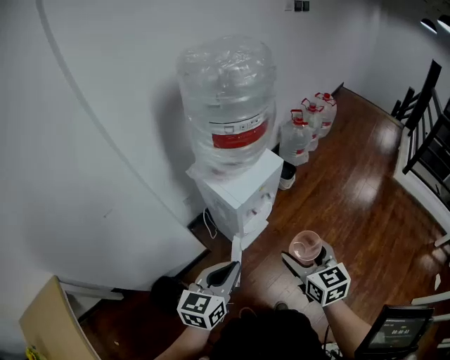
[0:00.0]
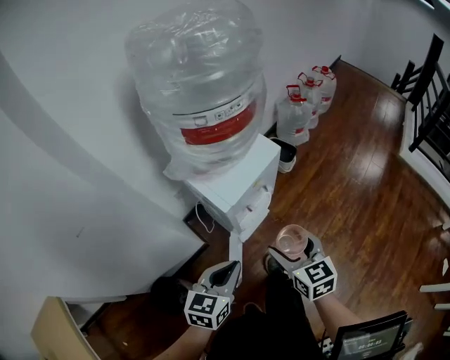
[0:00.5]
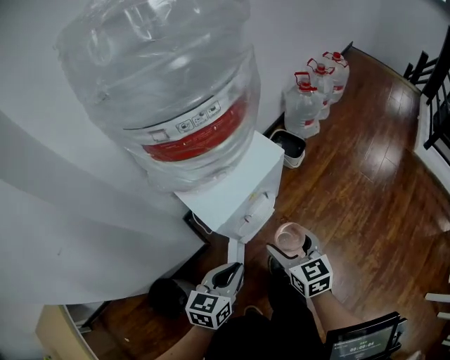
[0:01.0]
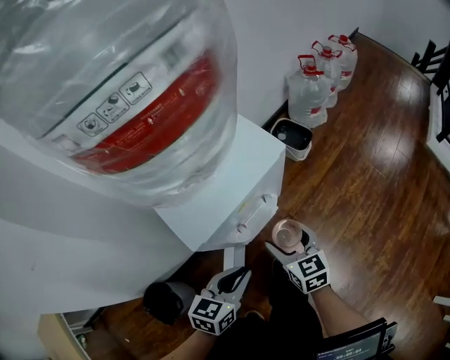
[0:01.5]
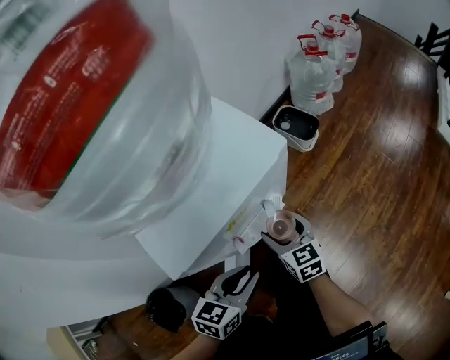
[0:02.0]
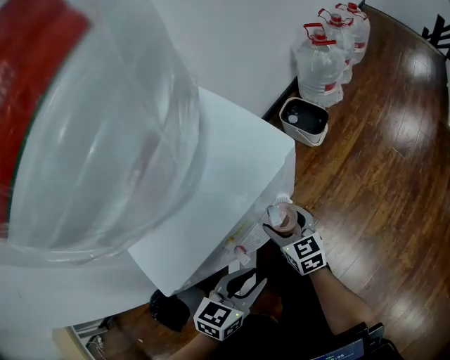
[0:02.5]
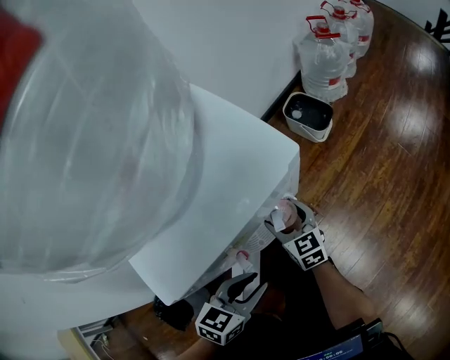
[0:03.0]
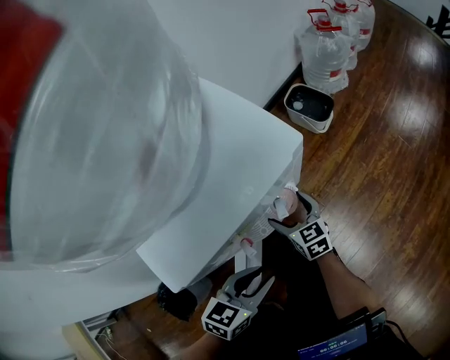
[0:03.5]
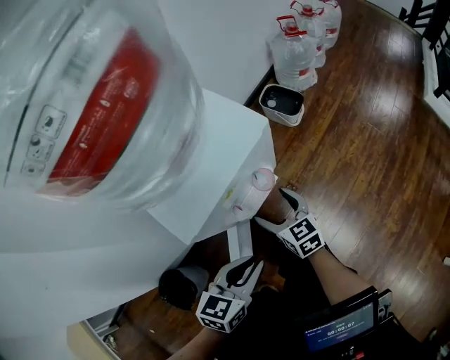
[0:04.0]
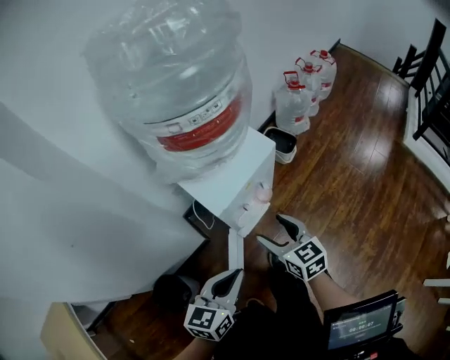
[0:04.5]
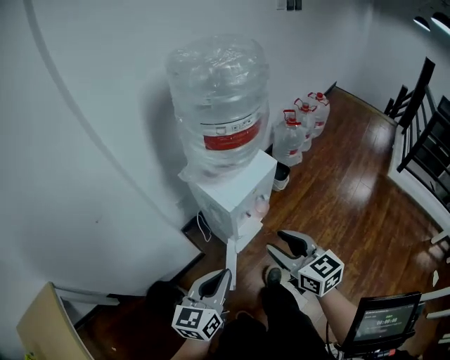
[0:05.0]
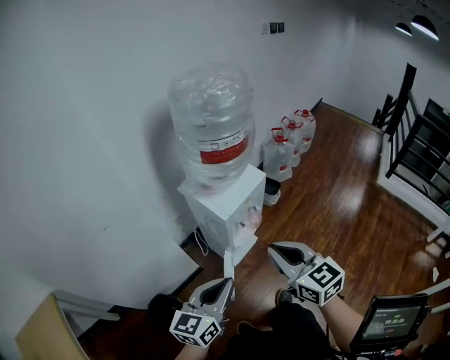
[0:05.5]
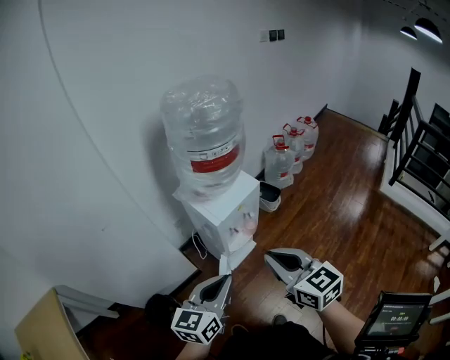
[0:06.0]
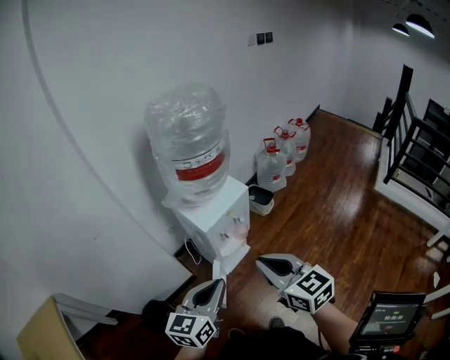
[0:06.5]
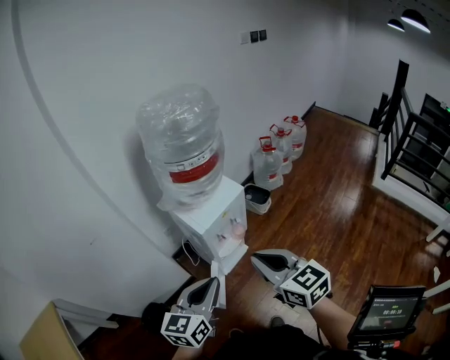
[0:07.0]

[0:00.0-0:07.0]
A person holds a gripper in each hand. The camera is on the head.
0:00.0 to 0:02.0: Both grippers travel together downward and forward, approximately 50 cm.
0:02.0 to 0:03.5: The right gripper travels downward by some 10 cm.
0:03.5 to 0:05.0: Both grippers move upward and backward, roughly 50 cm. The left gripper turns by about 30 degrees. Meanwhile the right gripper closes its fingers.
0:05.0 to 0:07.0: The right gripper goes some 10 cm upward and backward, and closes its fingers. Meanwhile the left gripper moves upward and to the right, roughly 10 cm.

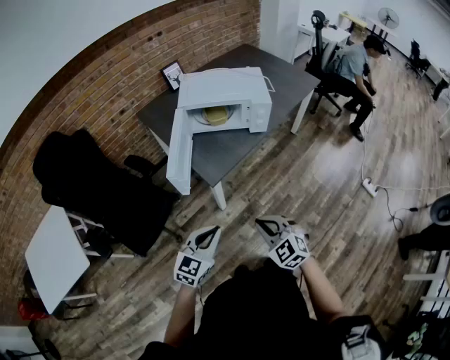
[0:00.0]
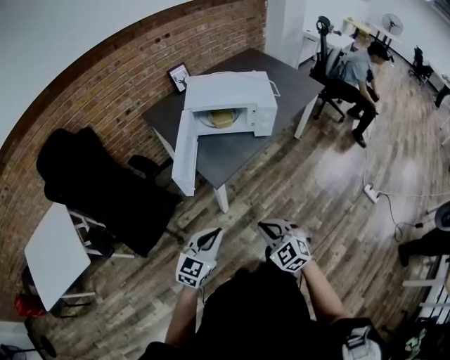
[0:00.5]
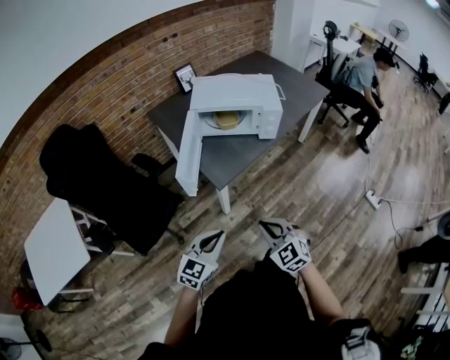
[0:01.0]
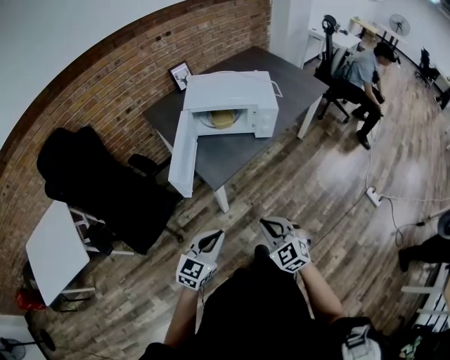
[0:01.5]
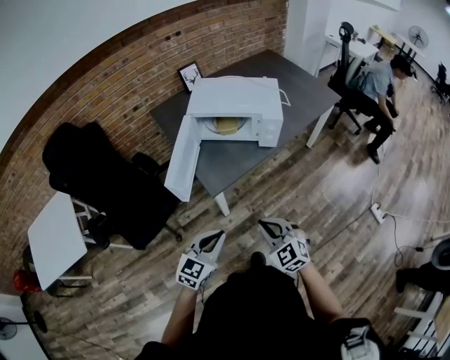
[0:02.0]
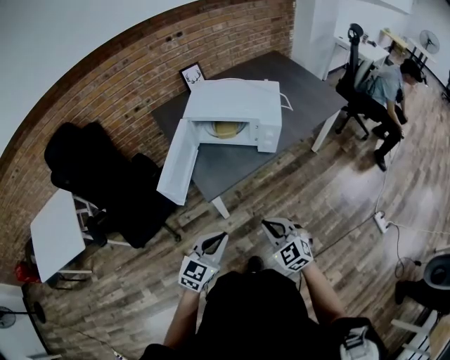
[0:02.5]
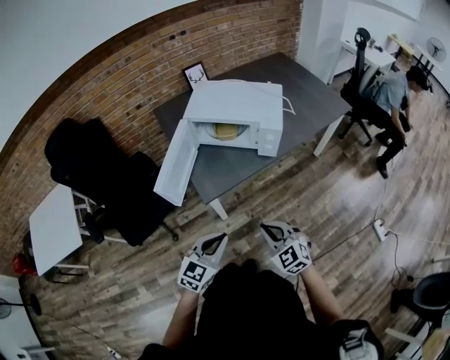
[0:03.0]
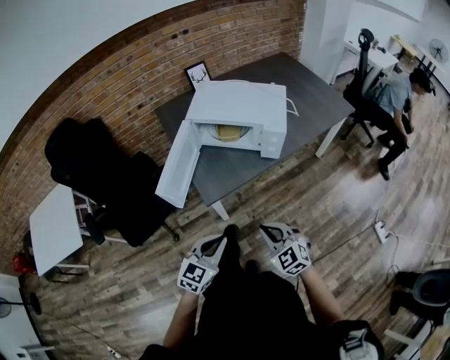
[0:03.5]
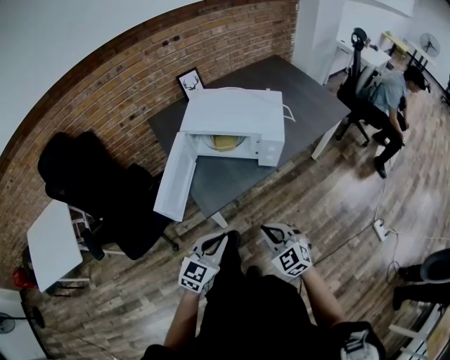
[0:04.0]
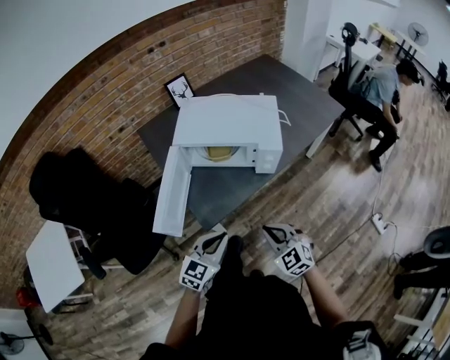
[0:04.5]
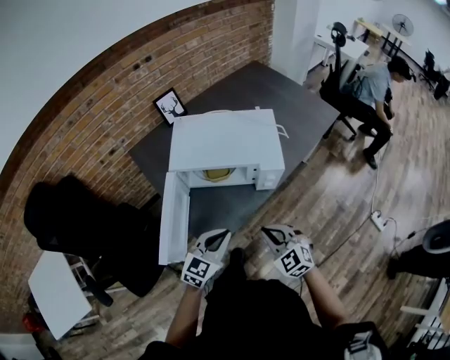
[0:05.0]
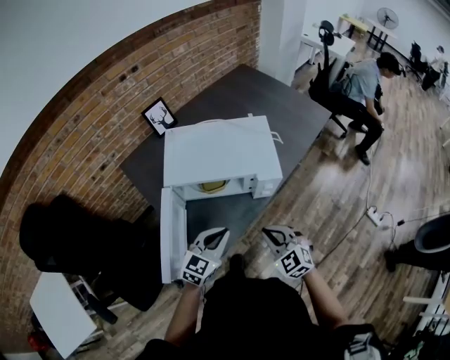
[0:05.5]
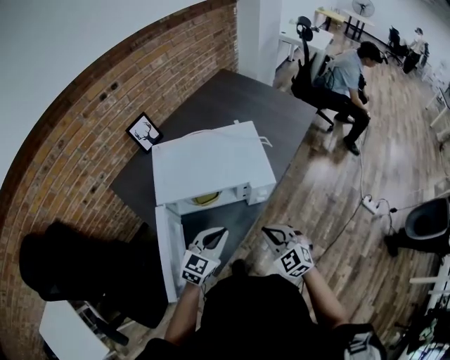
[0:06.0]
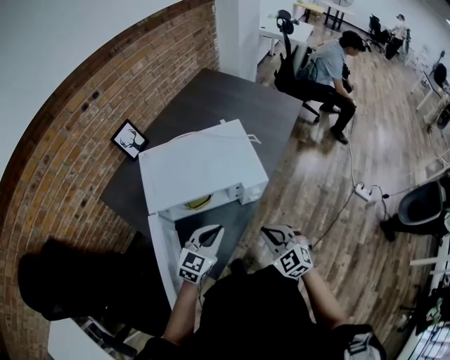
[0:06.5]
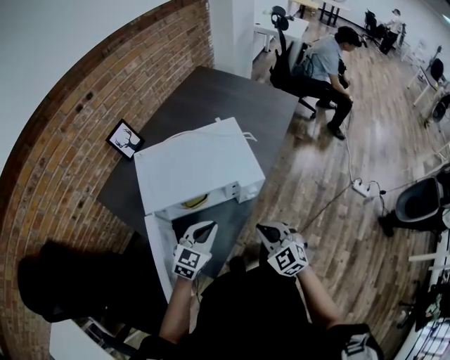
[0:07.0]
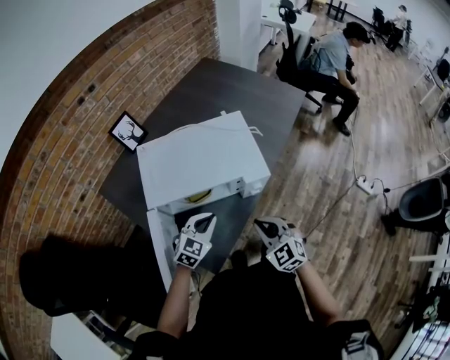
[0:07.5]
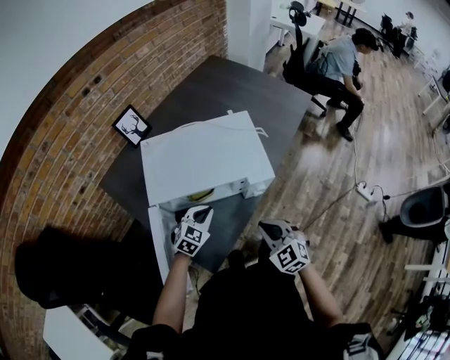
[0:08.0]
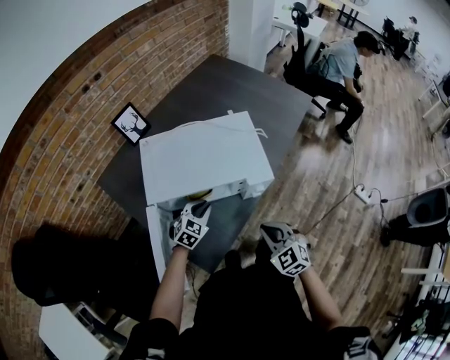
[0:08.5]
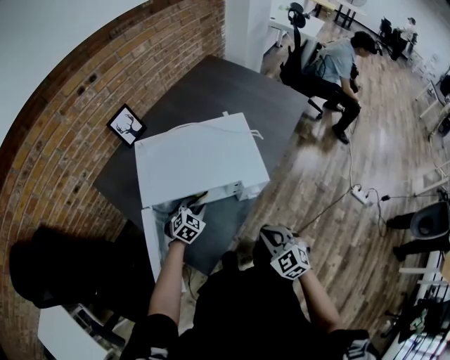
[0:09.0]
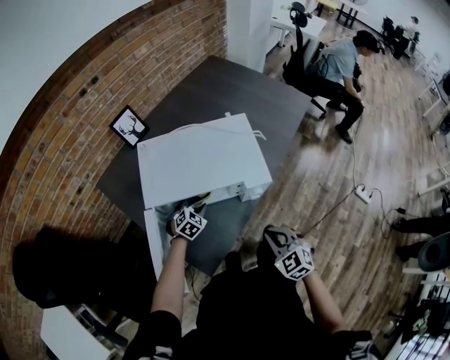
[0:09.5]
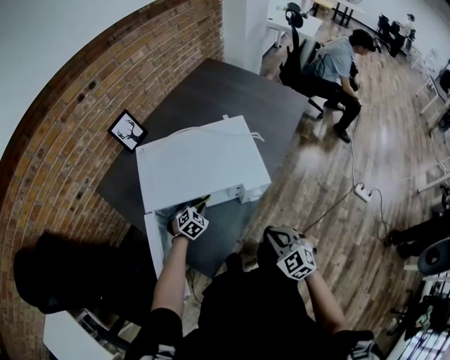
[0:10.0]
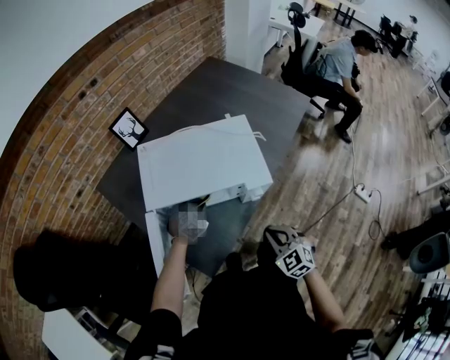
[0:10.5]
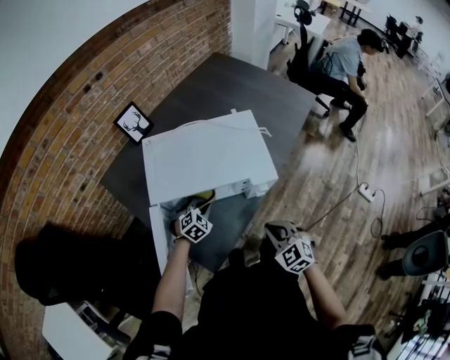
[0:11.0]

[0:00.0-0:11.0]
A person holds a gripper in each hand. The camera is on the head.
0:00.0 to 0:02.0: The left gripper travels to the right by about 5 cm. Meanwhile the right gripper is displaced forward and to the right by about 10 cm.
0:02.0 to 0:03.5: The right gripper travels forward and to the right by roughly 10 cm. Meanwhile the left gripper is displaced to the right by some 5 cm.
0:03.5 to 0:05.5: Both grippers travel together forward, approximately 25 cm.
0:05.5 to 0:07.5: The left gripper moves forward and downward, about 10 cm.
0:07.5 to 0:09.0: The left gripper goes approximately 15 cm downward and forward, and opens.
0:09.0 to 0:11.0: The grippers move only a little.

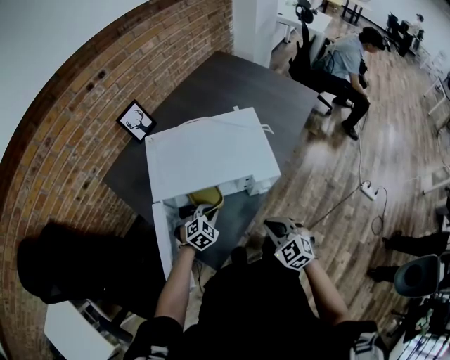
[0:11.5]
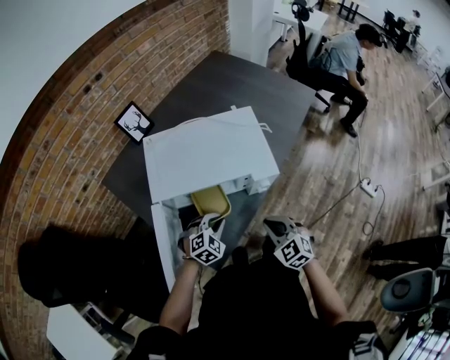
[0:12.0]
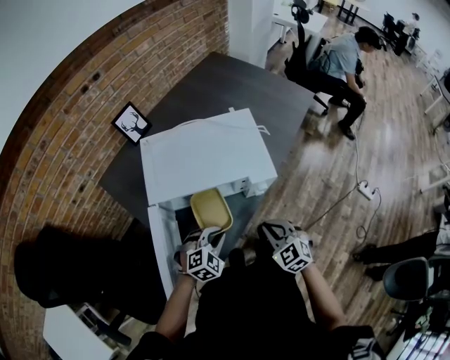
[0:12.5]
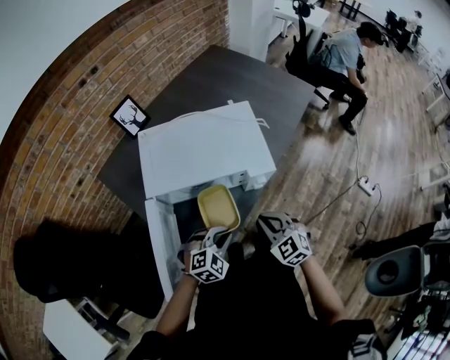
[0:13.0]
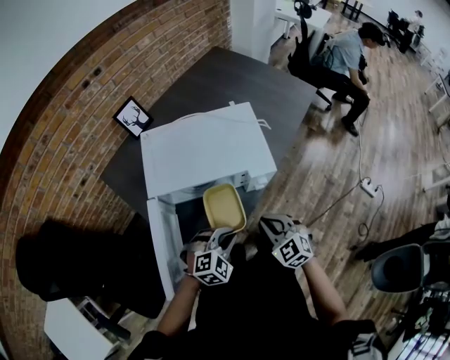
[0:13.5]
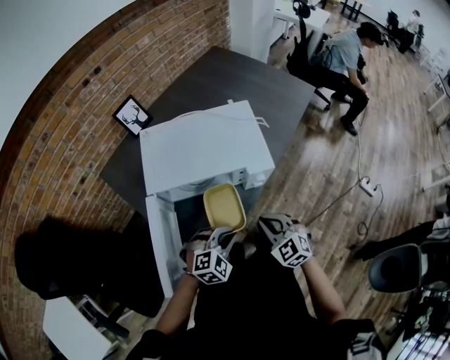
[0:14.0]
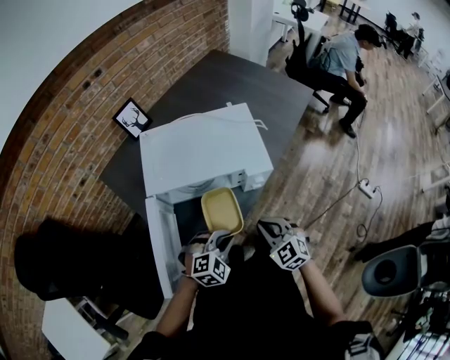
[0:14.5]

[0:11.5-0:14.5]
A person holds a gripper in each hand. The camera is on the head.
0:11.5 to 0:13.0: The left gripper heads backward, upward and to the right, covering approximately 15 cm.
0:13.0 to 0:14.5: The grippers make only small movements.

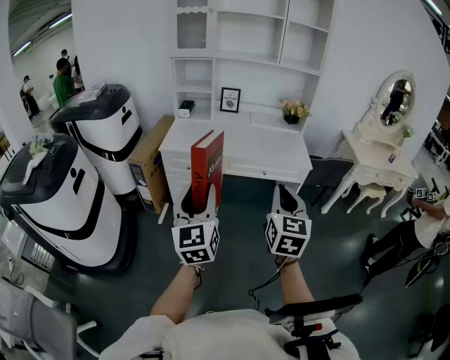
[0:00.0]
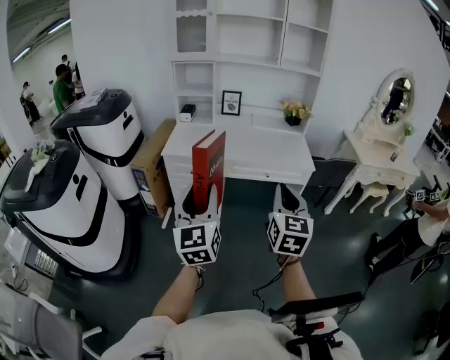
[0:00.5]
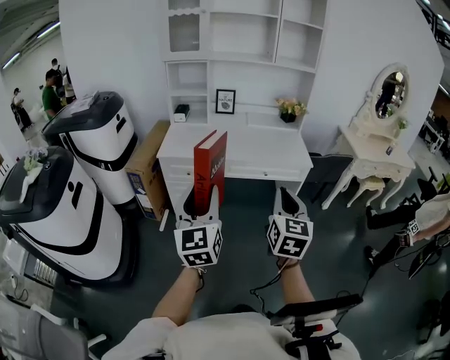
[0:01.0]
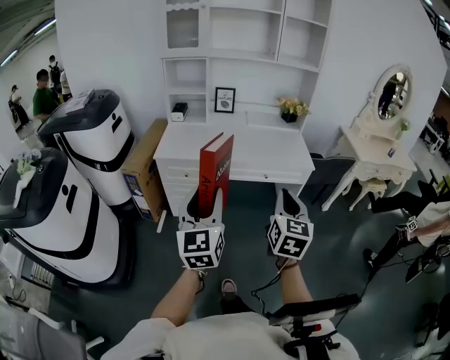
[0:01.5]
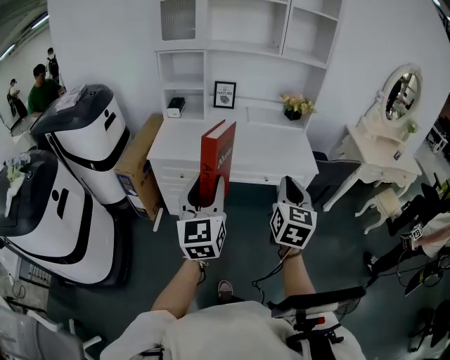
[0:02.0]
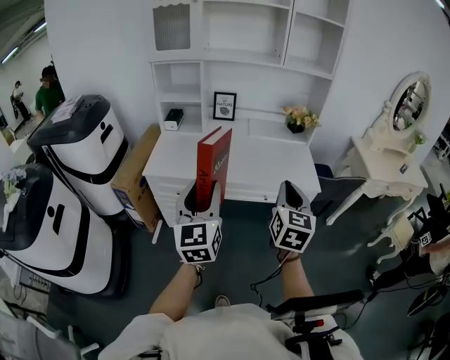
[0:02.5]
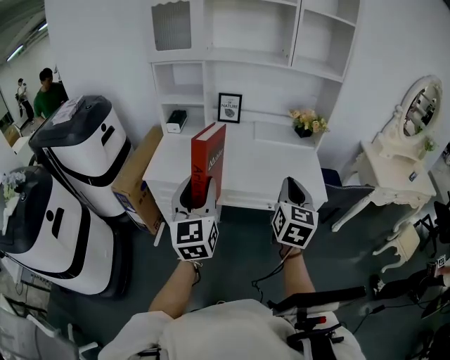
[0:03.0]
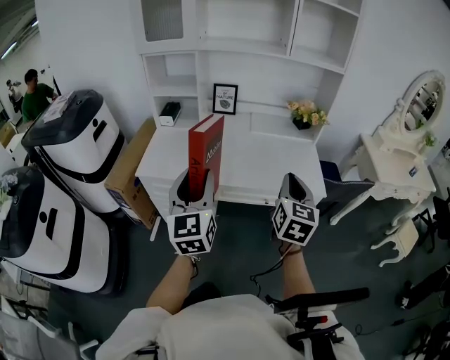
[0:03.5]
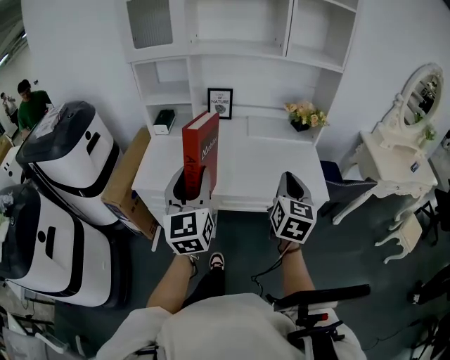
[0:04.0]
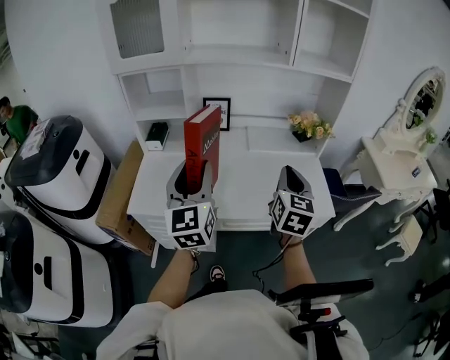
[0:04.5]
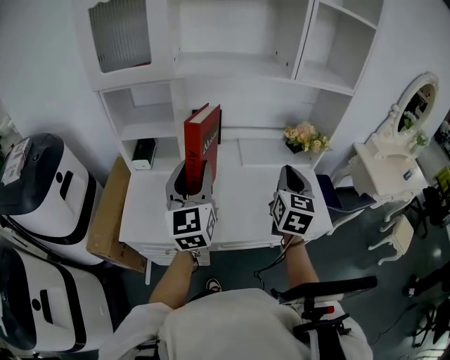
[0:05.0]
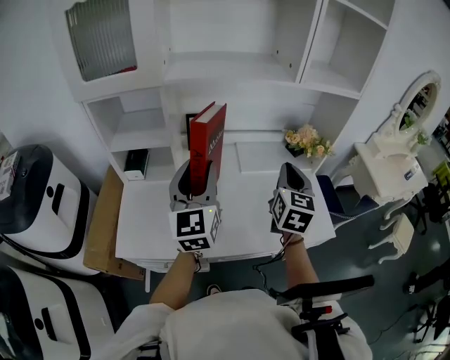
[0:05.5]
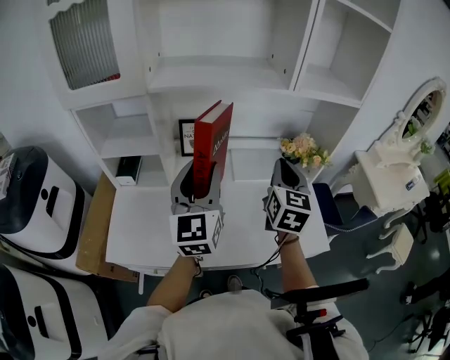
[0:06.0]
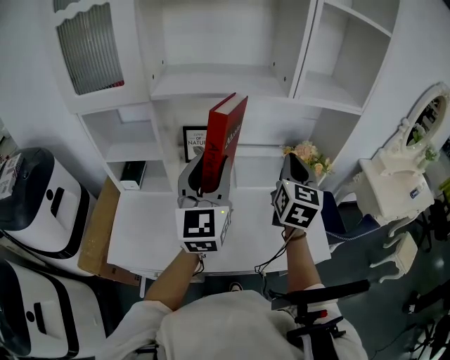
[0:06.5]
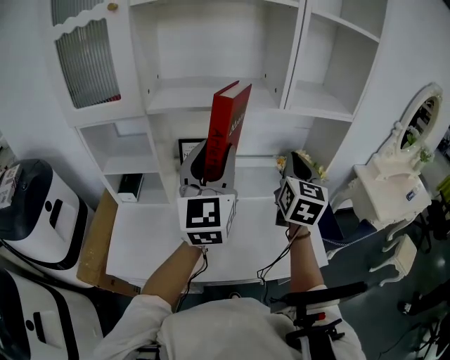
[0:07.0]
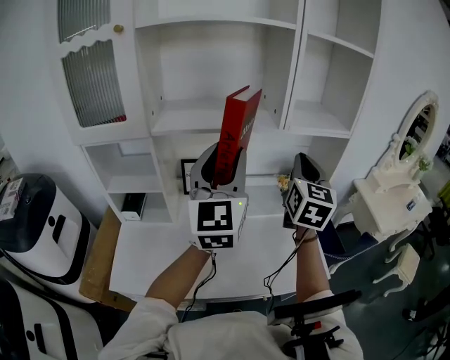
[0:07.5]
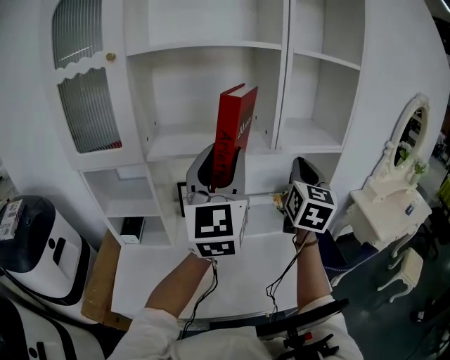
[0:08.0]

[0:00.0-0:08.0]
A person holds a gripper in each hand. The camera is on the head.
0:00.0 to 0:02.0: The two grippers go some 15 cm forward.
0:02.0 to 0:04.0: Both grippers travel together forward, approximately 25 cm.
0:04.0 to 0:06.0: The two grippers go roughly 30 cm forward.
0:06.0 to 0:08.0: The grippers both shift upward by roughly 20 cm.
